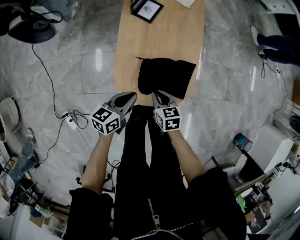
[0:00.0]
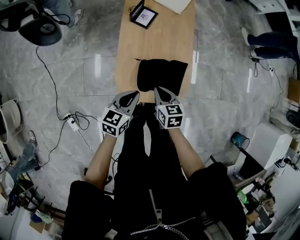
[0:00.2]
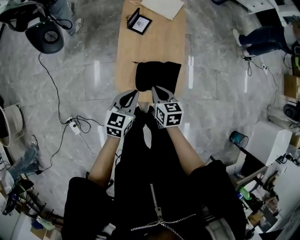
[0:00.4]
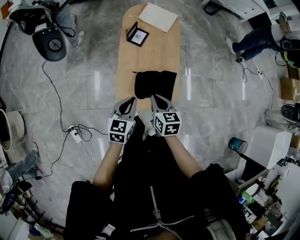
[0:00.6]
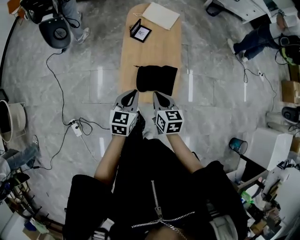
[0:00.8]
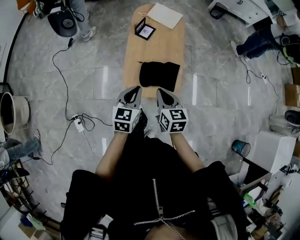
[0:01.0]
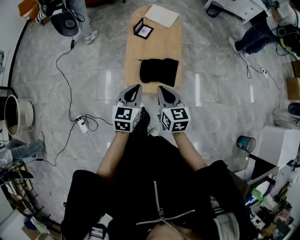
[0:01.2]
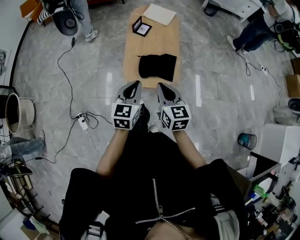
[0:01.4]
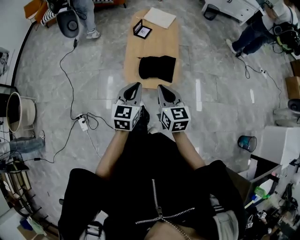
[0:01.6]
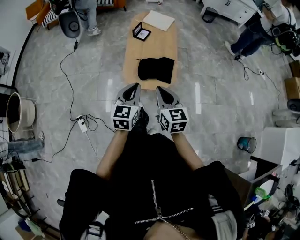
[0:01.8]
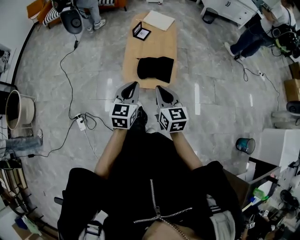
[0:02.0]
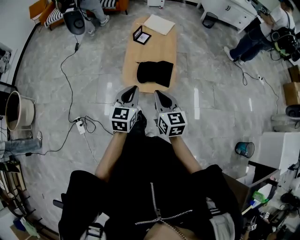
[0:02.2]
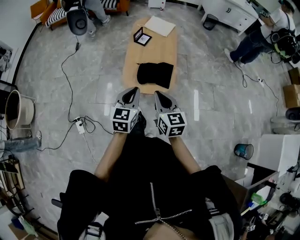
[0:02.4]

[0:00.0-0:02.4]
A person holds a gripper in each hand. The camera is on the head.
0:00.0 to 0:01.2: The two grippers go approximately 30 cm upward and backward. The left gripper swivels some 40 degrees, while the right gripper turns by about 30 degrees.
0:01.2 to 0:02.4: Both grippers travel together backward, some 10 cm.

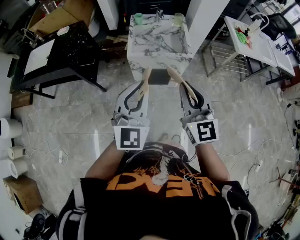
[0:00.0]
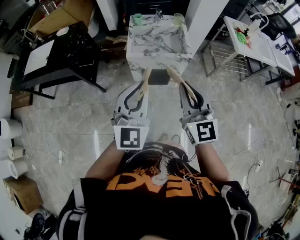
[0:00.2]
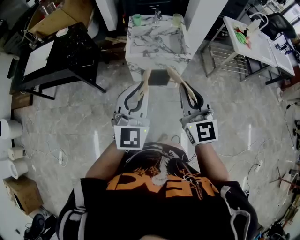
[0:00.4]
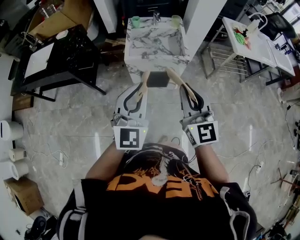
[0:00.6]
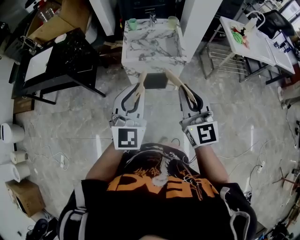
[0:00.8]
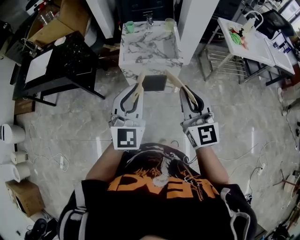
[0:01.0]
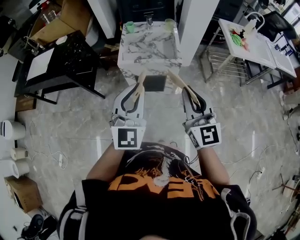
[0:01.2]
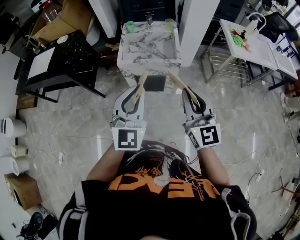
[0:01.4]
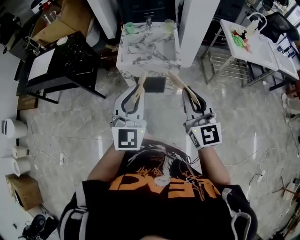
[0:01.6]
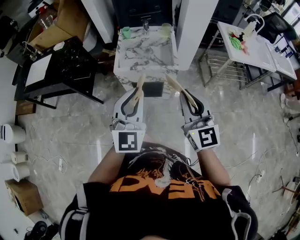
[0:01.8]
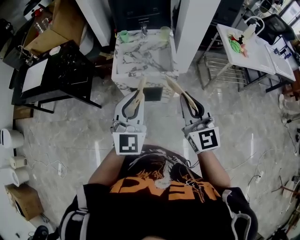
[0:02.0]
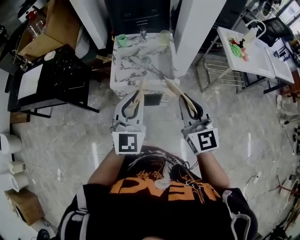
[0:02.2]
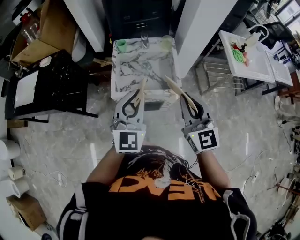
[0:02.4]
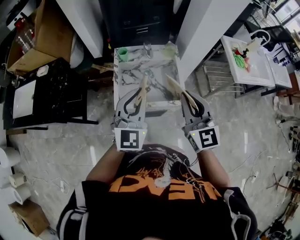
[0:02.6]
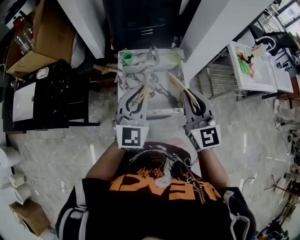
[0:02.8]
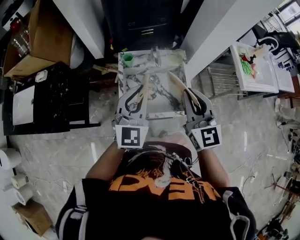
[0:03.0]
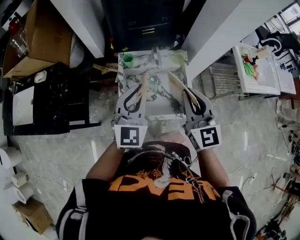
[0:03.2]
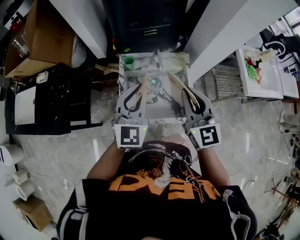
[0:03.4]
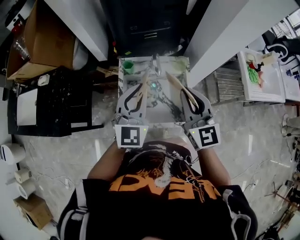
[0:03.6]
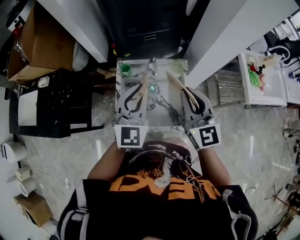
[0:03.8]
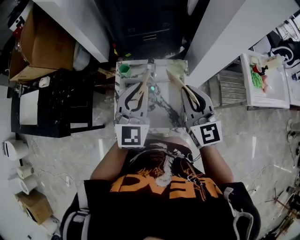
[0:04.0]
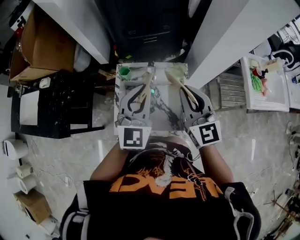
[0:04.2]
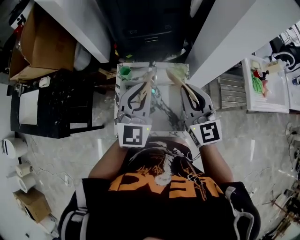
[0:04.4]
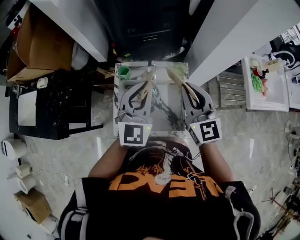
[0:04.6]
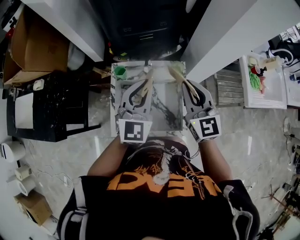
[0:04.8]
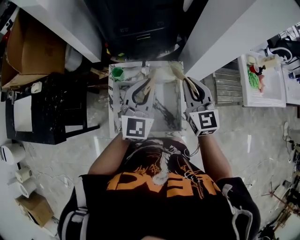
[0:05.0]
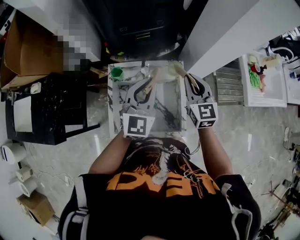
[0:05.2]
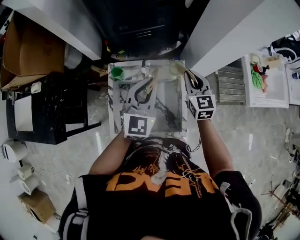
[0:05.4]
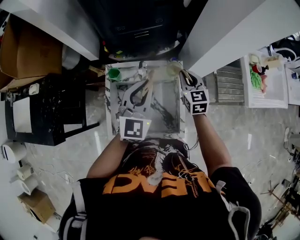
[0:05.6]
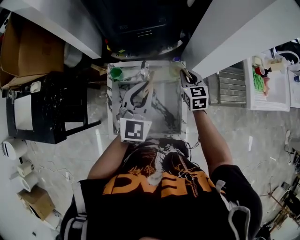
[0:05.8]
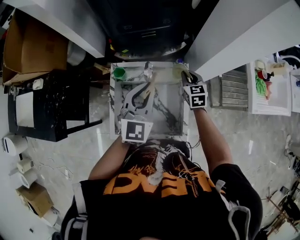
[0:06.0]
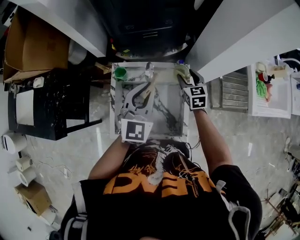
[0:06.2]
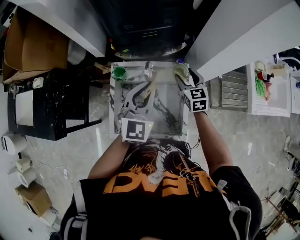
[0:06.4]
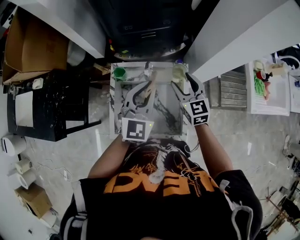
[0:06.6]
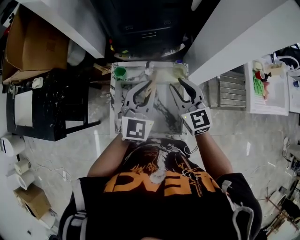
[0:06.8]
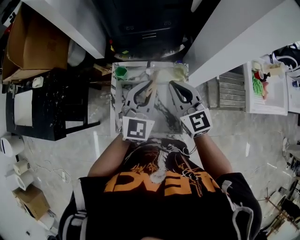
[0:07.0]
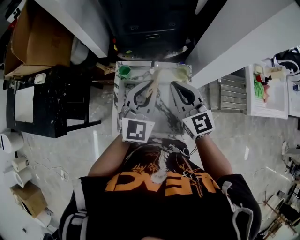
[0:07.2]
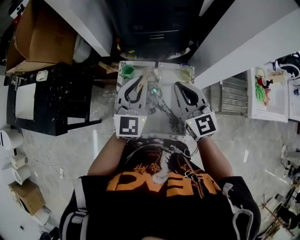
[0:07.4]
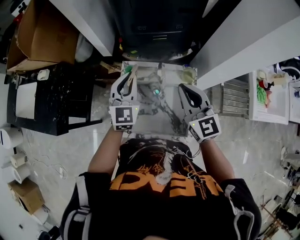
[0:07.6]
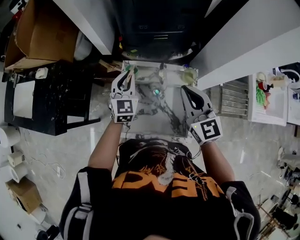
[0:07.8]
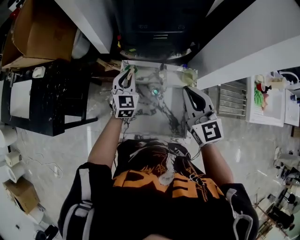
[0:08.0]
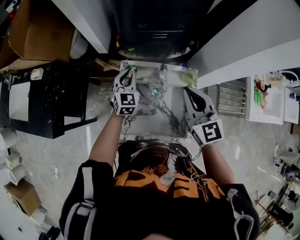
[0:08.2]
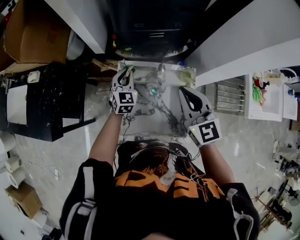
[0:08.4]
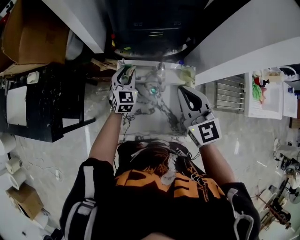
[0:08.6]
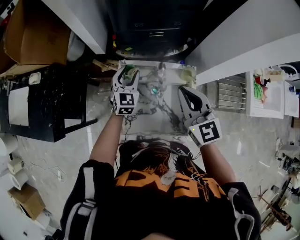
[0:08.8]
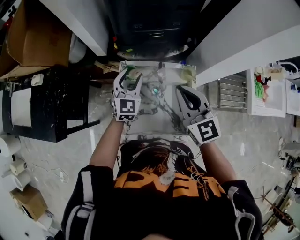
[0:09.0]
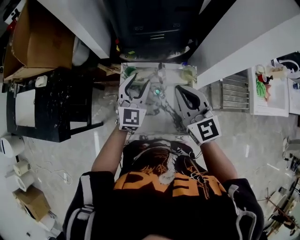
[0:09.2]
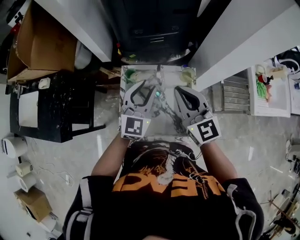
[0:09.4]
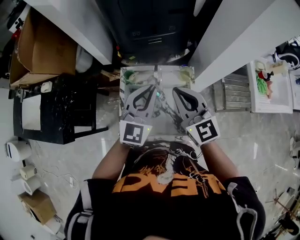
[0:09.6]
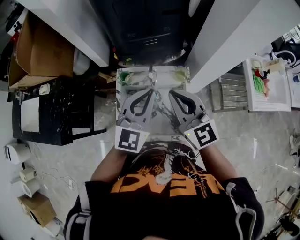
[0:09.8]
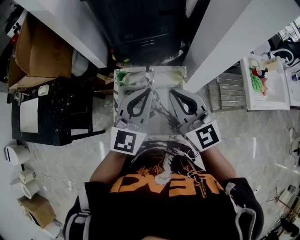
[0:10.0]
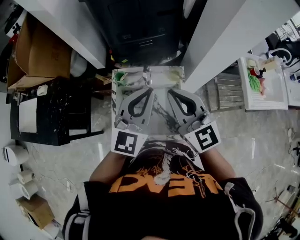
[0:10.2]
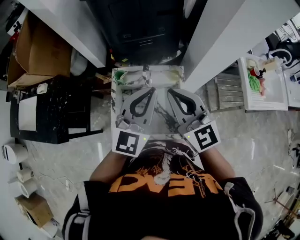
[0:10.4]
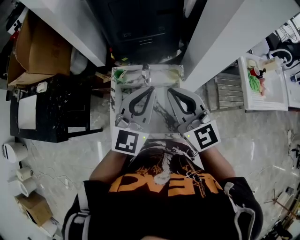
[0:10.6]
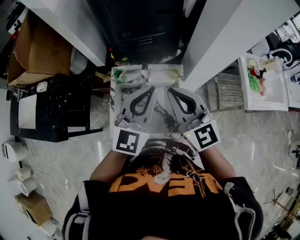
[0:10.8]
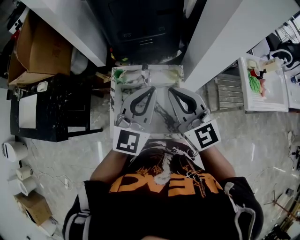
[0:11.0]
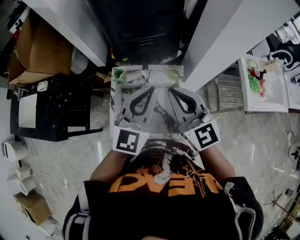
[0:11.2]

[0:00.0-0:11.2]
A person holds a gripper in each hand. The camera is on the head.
0:00.0 to 0:01.6: The grippers both shift to the right by approximately 10 cm.
0:01.6 to 0:03.2: The two grippers travel together, forward, some 50 cm.
0:03.2 to 0:04.8: Both grippers travel together forward and to the right, some 15 cm.
0:04.8 to 0:06.4: The left gripper moves about 5 cm. Meanwhile the right gripper heads downward and forward, covering about 25 cm, and opens.
0:06.4 to 0:08.0: The left gripper goes about 20 cm to the left, downward and forward; the right gripper is displaced upward, to the left and backward by about 25 cm, swivels approximately 20 degrees, and closes its fingers.
0:08.0 to 0:09.6: The left gripper moves upward, backward and to the right, about 25 cm, rotates roughly 30 degrees, and opens and closes again.
0:09.6 to 0:11.2: The left gripper heads upward and to the right, covering approximately 10 cm, while the right gripper ends up some 5 cm from where it was.

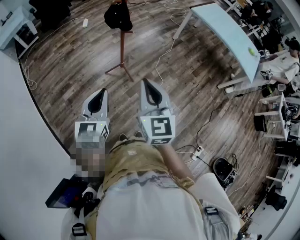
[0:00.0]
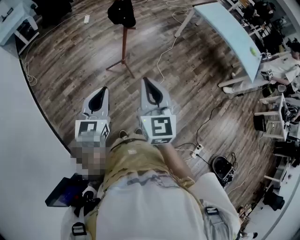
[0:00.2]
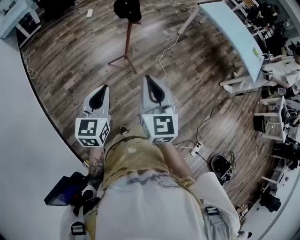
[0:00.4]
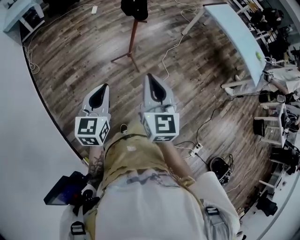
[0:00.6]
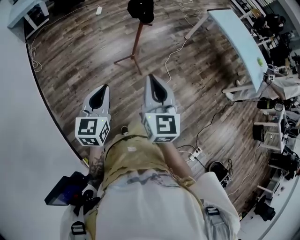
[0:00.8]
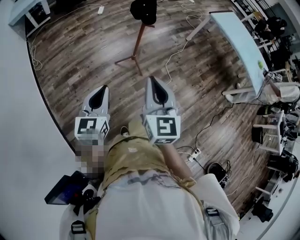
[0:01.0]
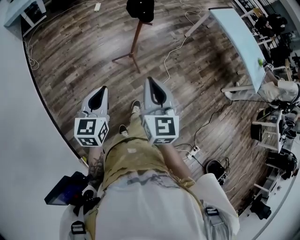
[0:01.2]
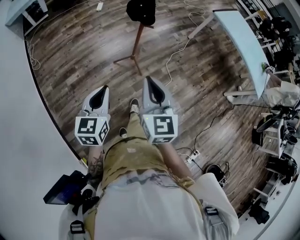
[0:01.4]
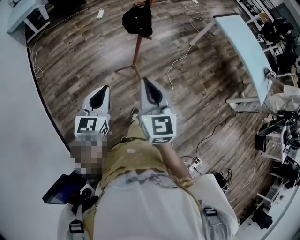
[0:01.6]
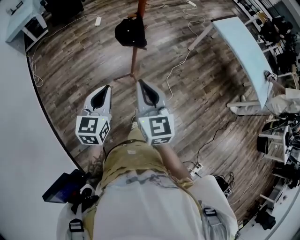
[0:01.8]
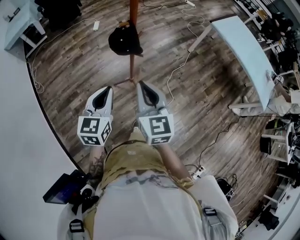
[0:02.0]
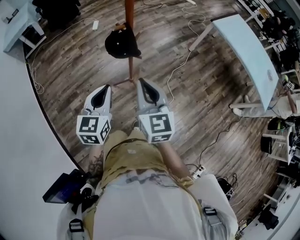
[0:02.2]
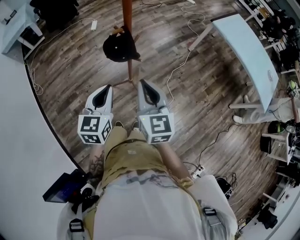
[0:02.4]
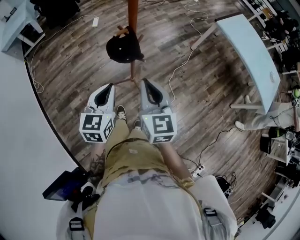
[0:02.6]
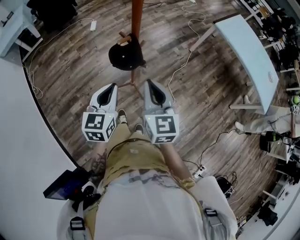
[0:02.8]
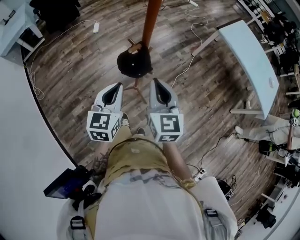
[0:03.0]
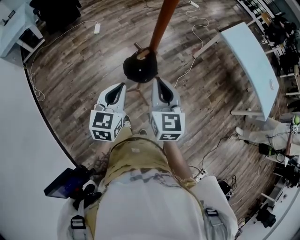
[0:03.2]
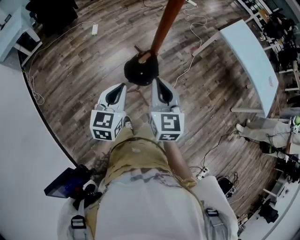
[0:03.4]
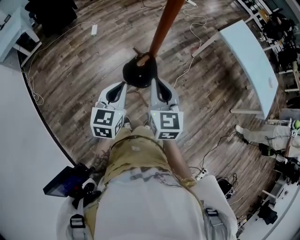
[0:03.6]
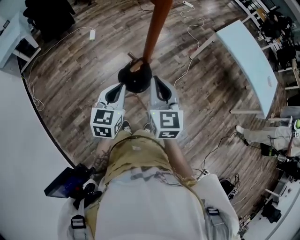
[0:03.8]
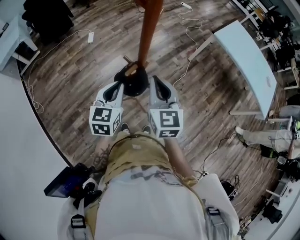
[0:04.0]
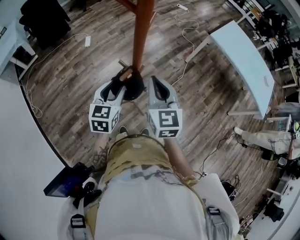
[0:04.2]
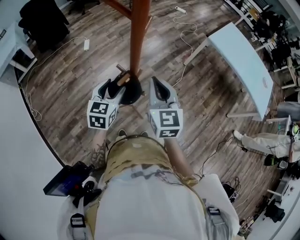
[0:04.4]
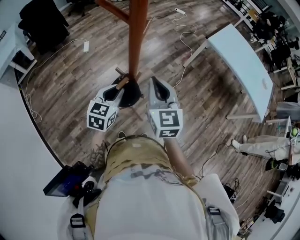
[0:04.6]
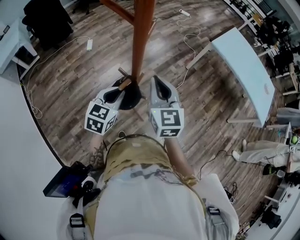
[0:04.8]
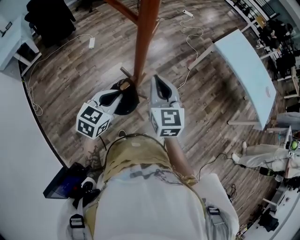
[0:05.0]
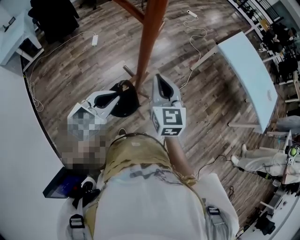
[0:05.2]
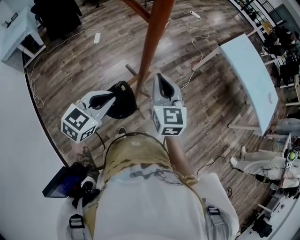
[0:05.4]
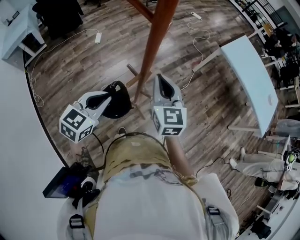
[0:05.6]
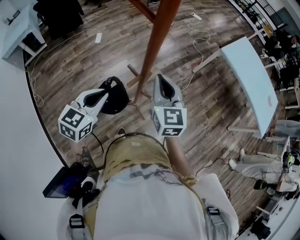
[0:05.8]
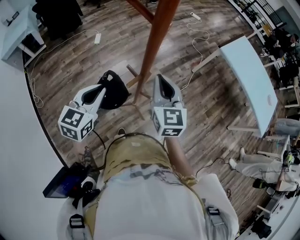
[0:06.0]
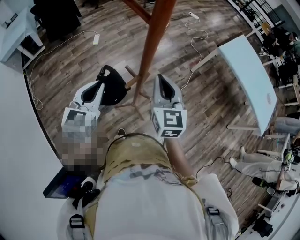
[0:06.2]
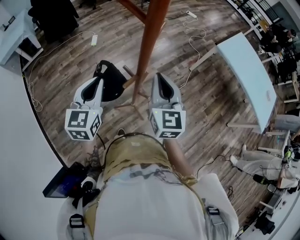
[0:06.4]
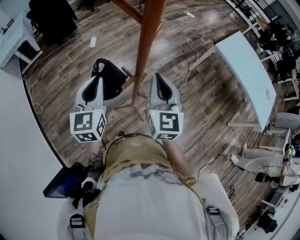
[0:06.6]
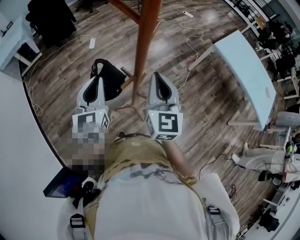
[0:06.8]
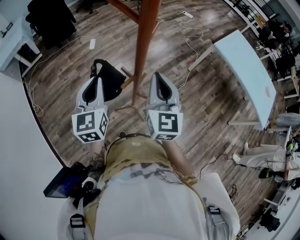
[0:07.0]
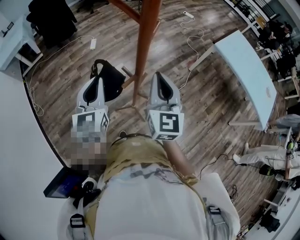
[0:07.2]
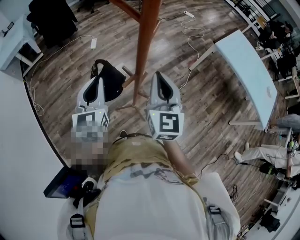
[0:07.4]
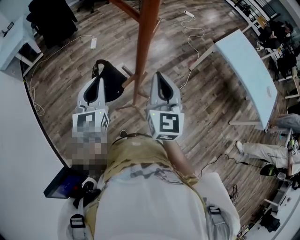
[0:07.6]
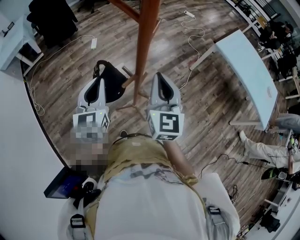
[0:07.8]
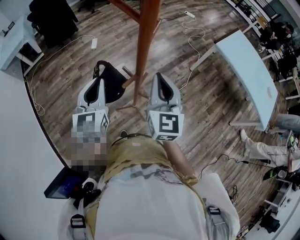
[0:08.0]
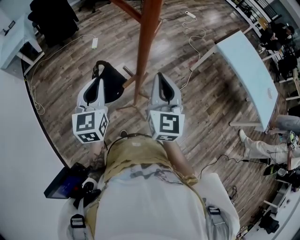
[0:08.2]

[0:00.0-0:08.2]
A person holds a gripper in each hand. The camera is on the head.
0:00.0 to 0:01.6: Both grippers travel together forward and to the left, approximately 15 cm.
0:01.6 to 0:03.2: The grippers both shift forward by some 30 cm.
0:03.2 to 0:05.0: Both grippers move forward, some 10 cm. The left gripper changes its angle by approximately 20 degrees, and opens and closes again.
0:05.0 to 0:06.6: The left gripper shifts roughly 10 cm to the left and upward, and turns by some 40 degrees.
0:06.6 to 0:08.2: Both grippers stay about where they are.

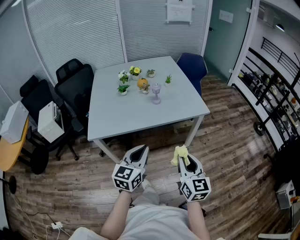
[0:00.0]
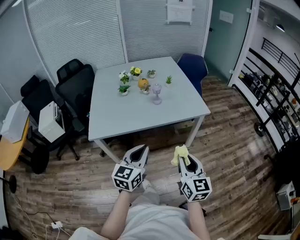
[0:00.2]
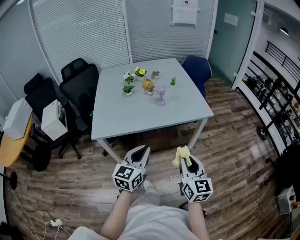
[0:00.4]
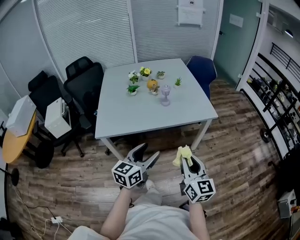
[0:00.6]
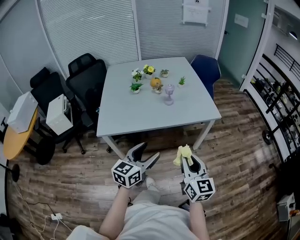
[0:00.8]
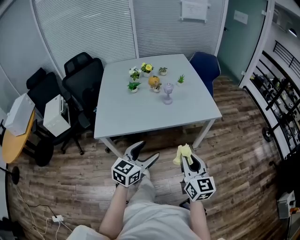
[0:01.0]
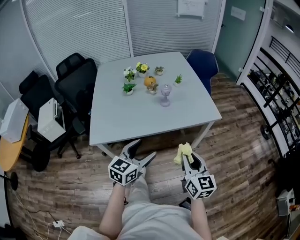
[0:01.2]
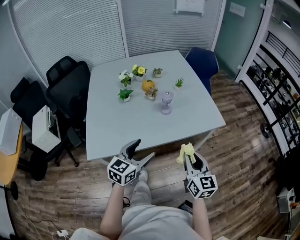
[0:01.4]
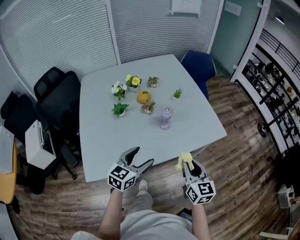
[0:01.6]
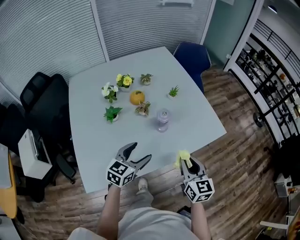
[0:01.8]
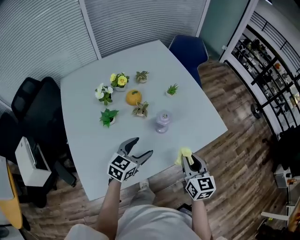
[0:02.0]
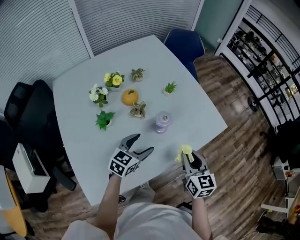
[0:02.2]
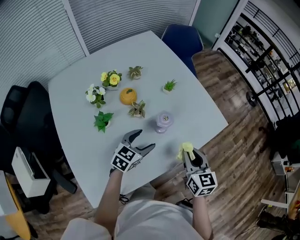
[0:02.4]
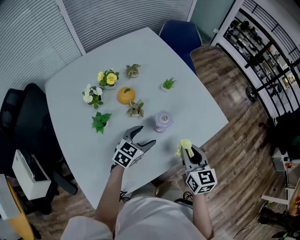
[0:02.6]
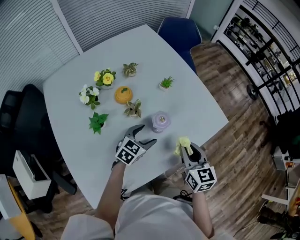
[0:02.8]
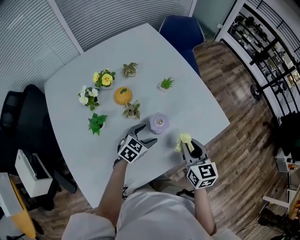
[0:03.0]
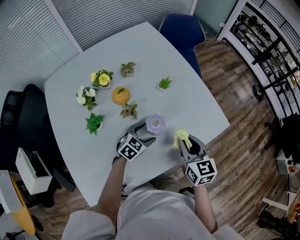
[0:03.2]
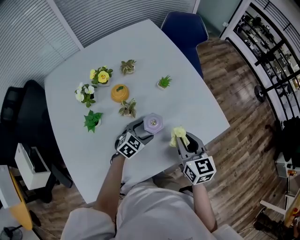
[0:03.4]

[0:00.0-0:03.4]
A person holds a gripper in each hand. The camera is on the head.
0:00.0 to 0:01.6: The right gripper moves forward, about 25 cm. Meanwhile the left gripper moves forward and to the left, approximately 30 cm, swivels some 20 degrees, and opens.
0:01.6 to 0:03.4: The right gripper travels forward by about 20 cm. Meanwhile the left gripper goes about 30 cm forward and downward, and changes its angle by roughly 40 degrees.
